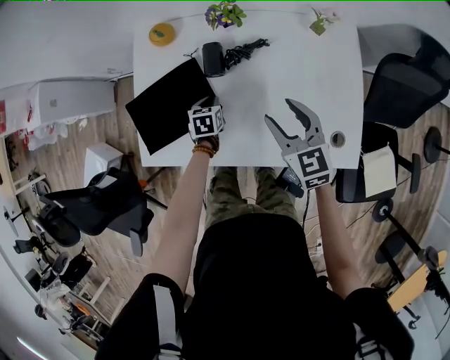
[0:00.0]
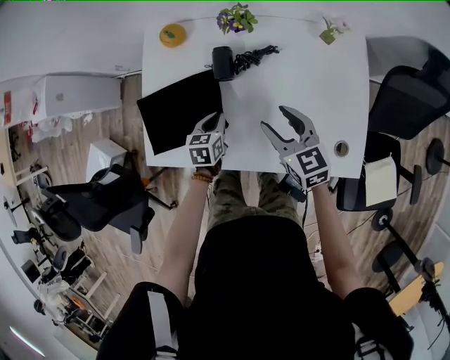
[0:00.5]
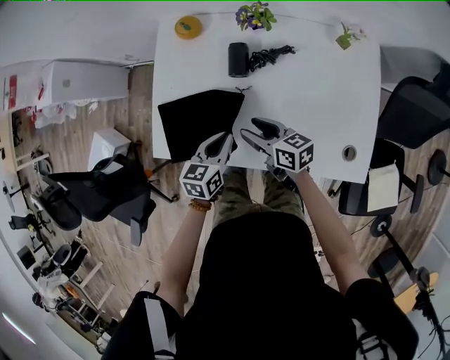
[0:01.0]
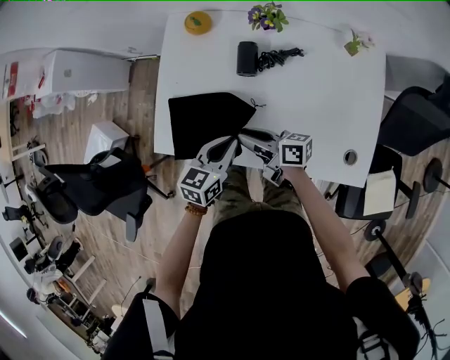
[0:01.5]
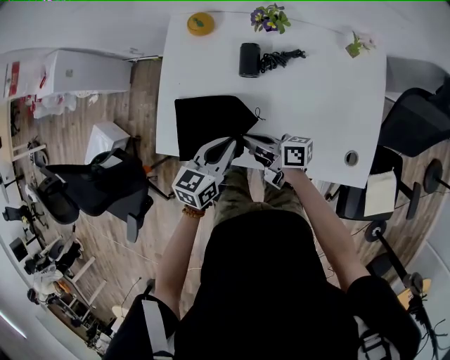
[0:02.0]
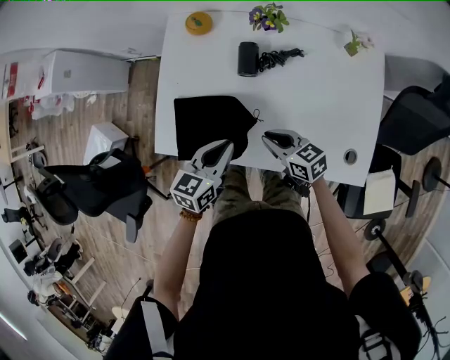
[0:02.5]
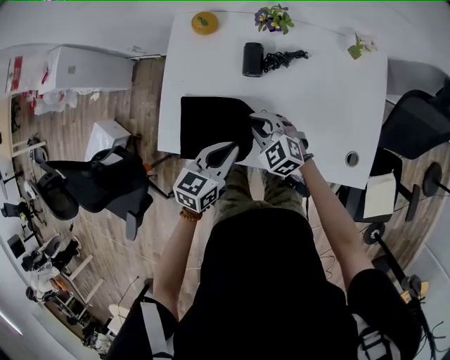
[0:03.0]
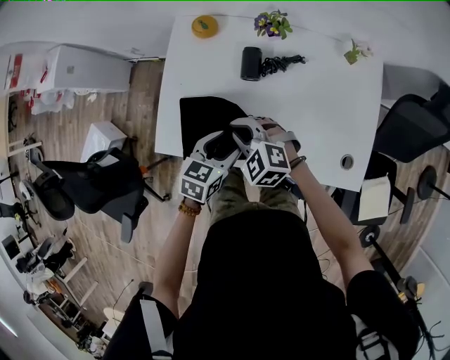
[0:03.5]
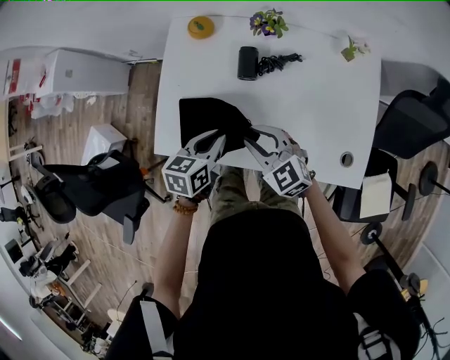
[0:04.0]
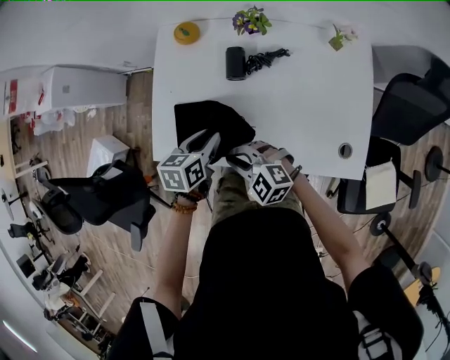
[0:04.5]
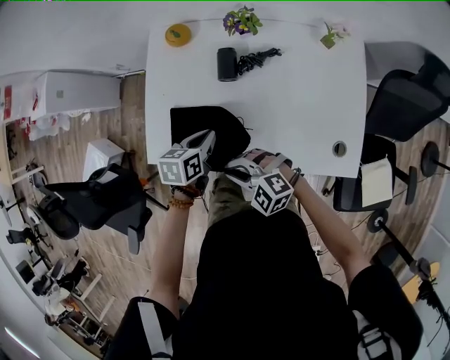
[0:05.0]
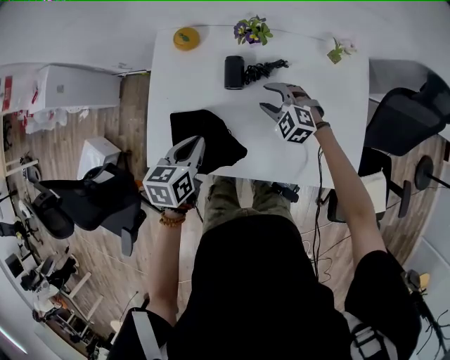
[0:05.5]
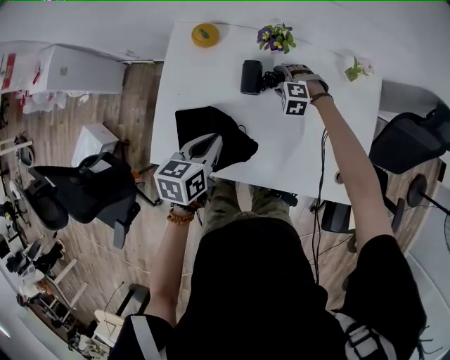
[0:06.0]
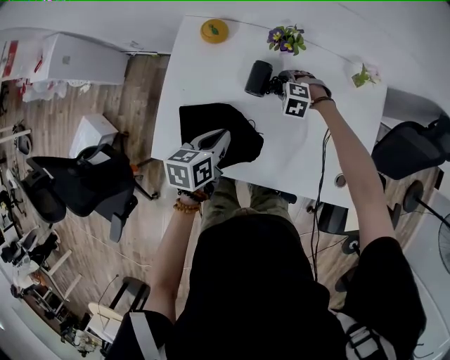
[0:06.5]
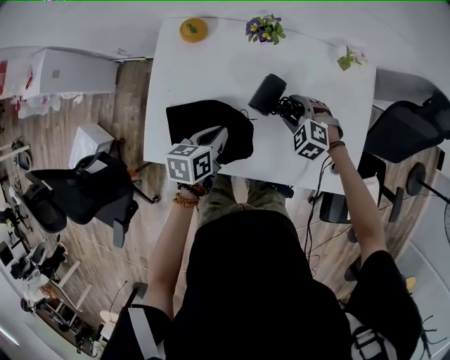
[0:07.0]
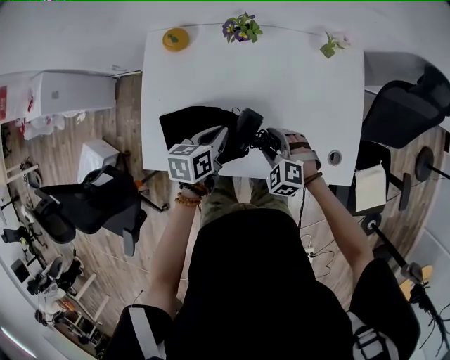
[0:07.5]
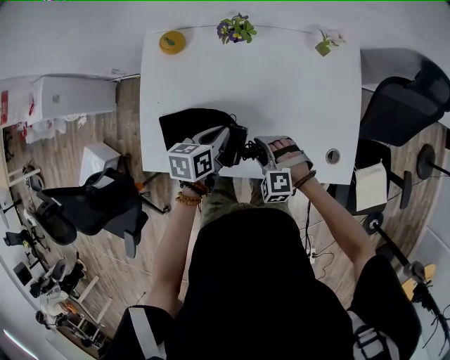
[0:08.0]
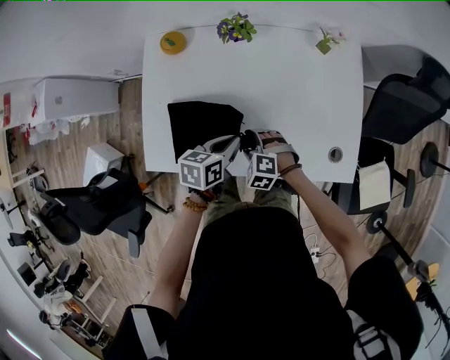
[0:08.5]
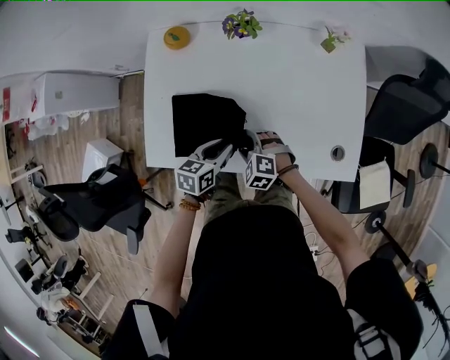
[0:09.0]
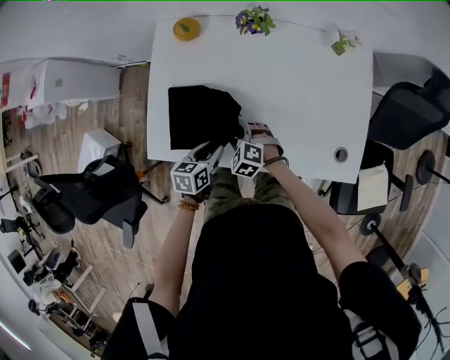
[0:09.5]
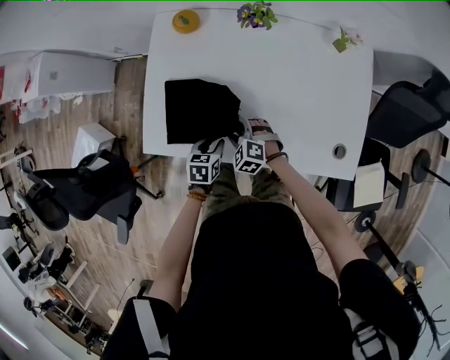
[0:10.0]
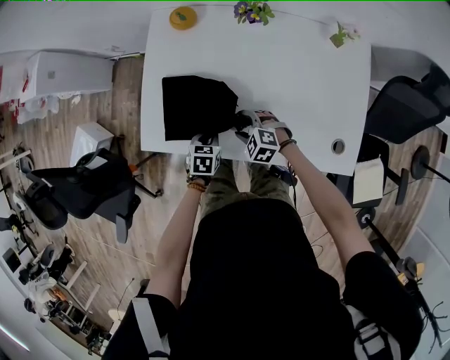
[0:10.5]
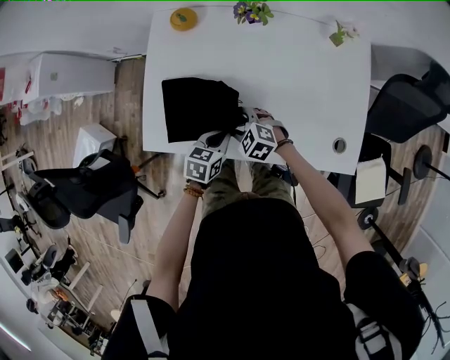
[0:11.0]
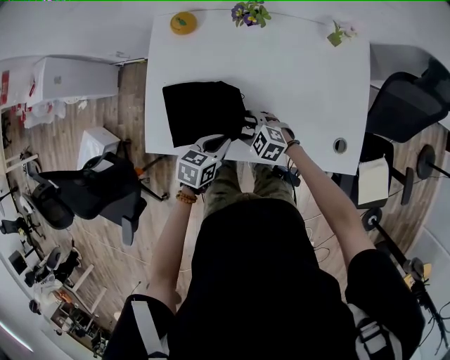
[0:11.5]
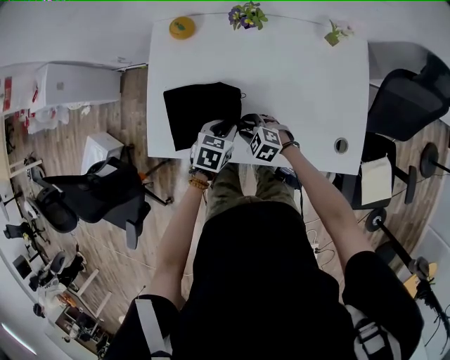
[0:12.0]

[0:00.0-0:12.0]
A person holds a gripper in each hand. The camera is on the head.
0:00.0 to 0:02.0: The right gripper travels to the left and downward by approximately 20 cm, swivels roughly 70 degrees, and closes up, while the left gripper shifts roughly 20 cm upward and backward, and rotates some 30 degrees.
0:02.0 to 0:04.0: The left gripper opens and closes again. The right gripper swings left and right, approximately 10 cm each way, with 2 reversals, and twists about 70 degrees counterclockwise, seen from behind.
0:04.0 to 0:06.0: The right gripper shifts roughly 30 cm forward, downward and to the right, tips its fingers downward by roughly 40 degrees, and opens up.
0:06.0 to 0:08.0: The left gripper is displaced to the right by about 10 cm; the right gripper moves backward, about 25 cm.
0:08.0 to 0:10.0: The left gripper goes some 20 cm downward, backward and to the left, and opens its fingers. The right gripper goes roughly 15 cm to the left and downward.
0:10.0 to 0:12.0: The left gripper goes some 10 cm to the right and upward, and closes, then opens again.

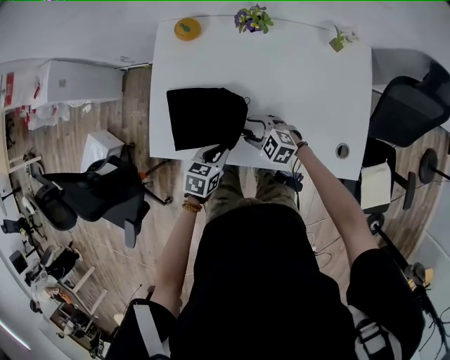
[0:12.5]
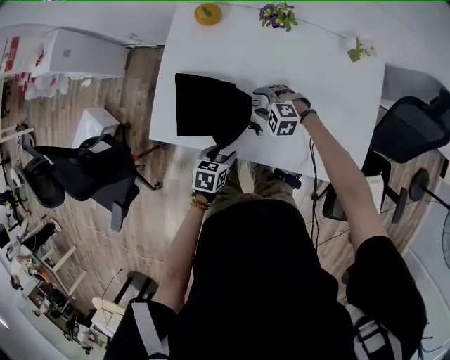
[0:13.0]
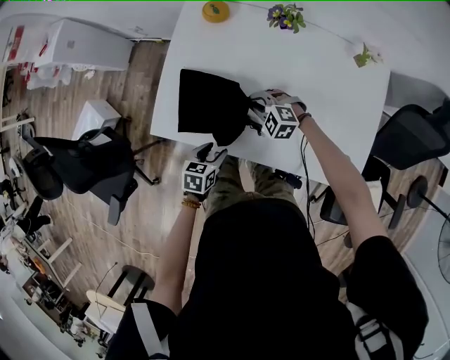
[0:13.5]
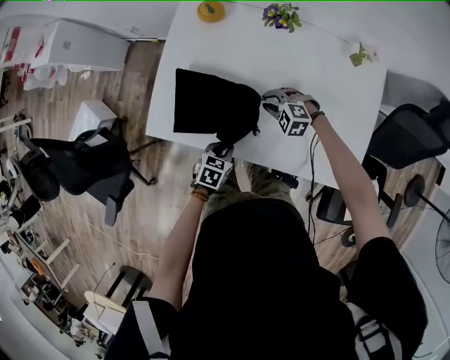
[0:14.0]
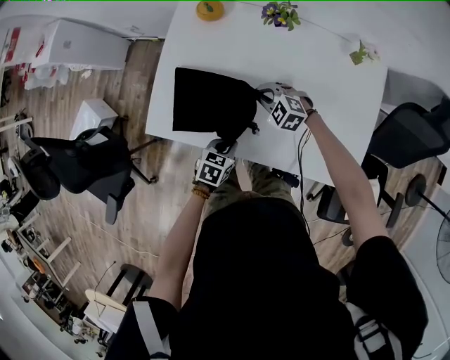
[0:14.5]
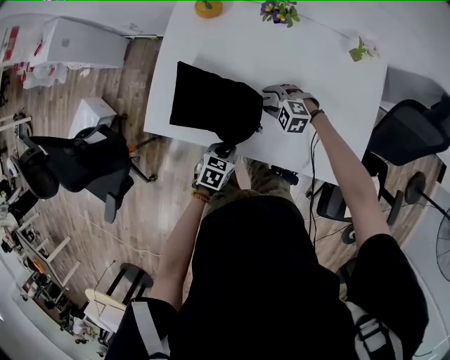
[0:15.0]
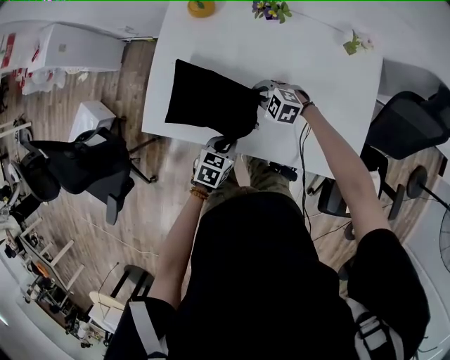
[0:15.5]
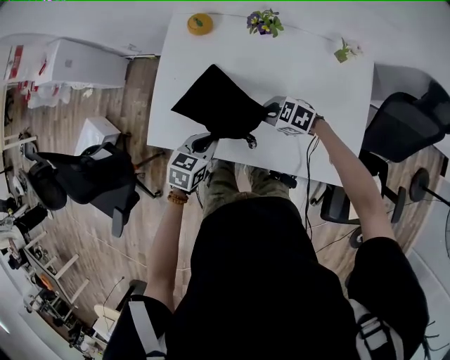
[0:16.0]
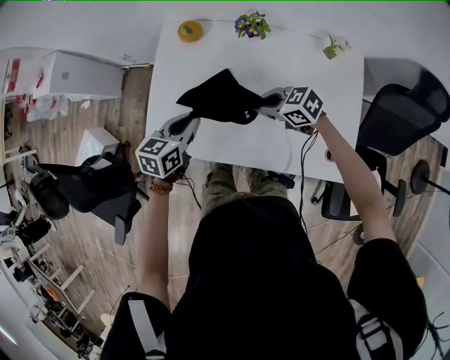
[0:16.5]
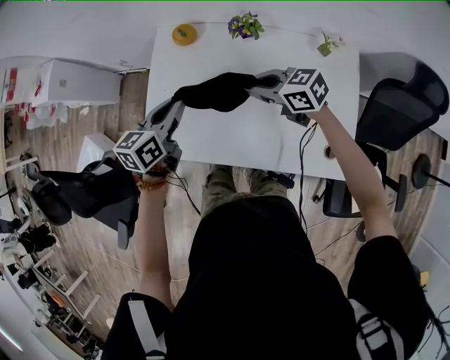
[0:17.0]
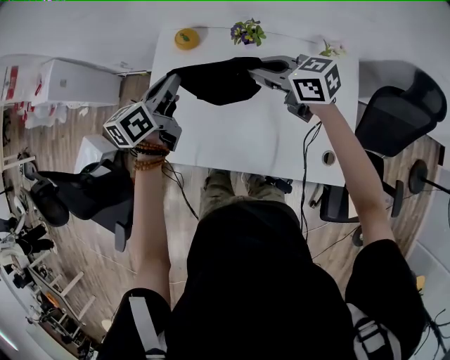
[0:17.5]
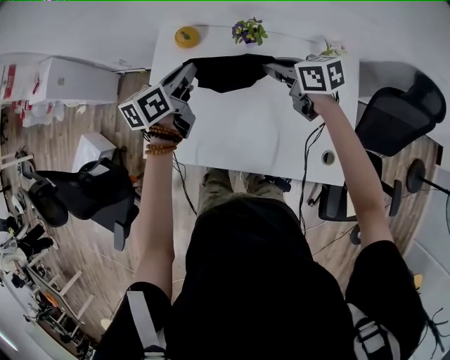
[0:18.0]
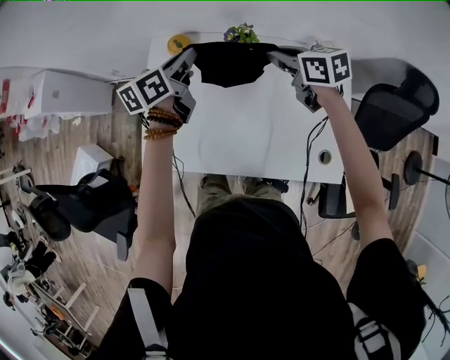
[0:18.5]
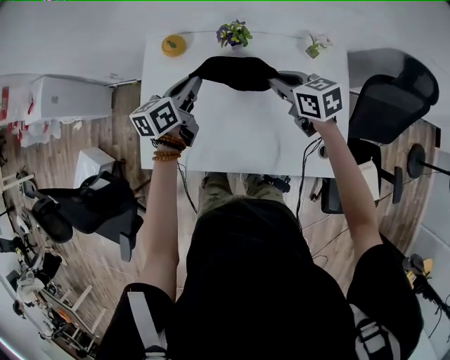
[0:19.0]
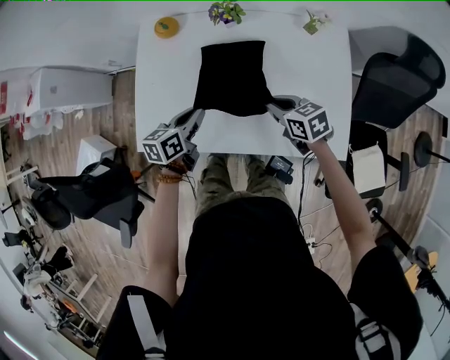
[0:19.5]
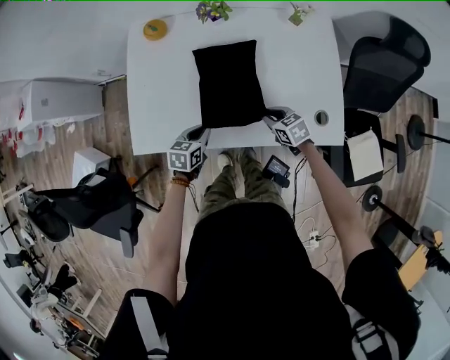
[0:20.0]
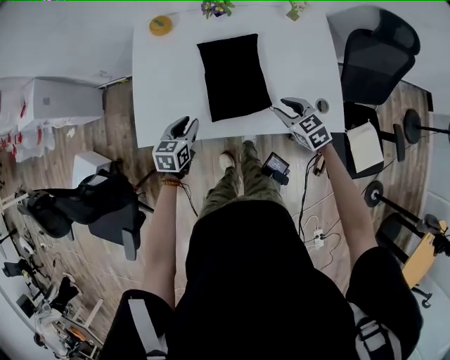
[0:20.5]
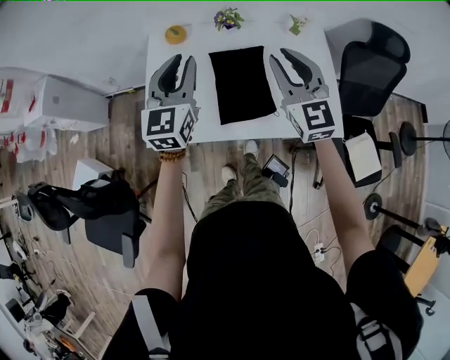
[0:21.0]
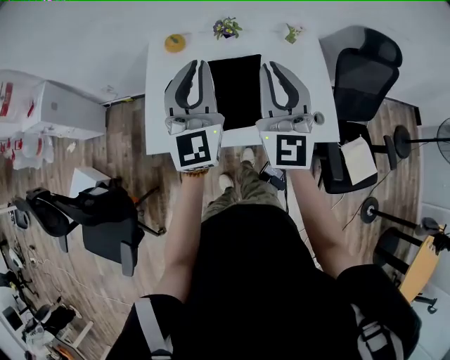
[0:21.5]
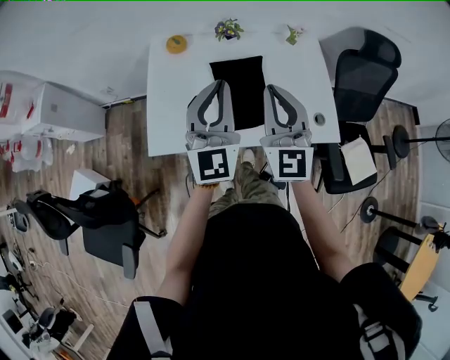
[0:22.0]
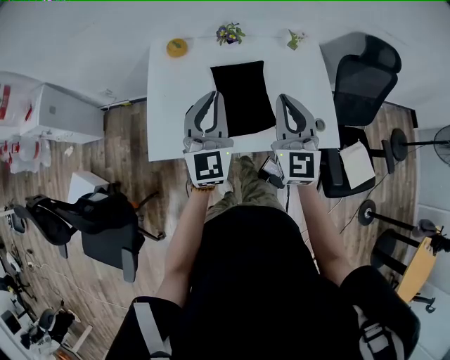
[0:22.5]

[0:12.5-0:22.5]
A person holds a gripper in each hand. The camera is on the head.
0:12.5 to 0:14.5: The right gripper shifts about 10 cm forward, and closes up, while the left gripper shifts by approximately 5 cm, and opens and closes again.
0:14.5 to 0:16.5: The right gripper travels upward by approximately 10 cm, changes its angle by approximately 40 degrees, and opens, then closes again; the left gripper heads upward, covering some 20 cm, and rotates approximately 20 degrees.
0:16.5 to 0:18.5: The two grippers go roughly 25 cm forward, upward and to the right. The right gripper swivels about 40 degrees. The left gripper rotates about 30 degrees.
0:18.5 to 0:20.5: The grippers both shift backward and downward by approximately 35 cm. The right gripper turns by approximately 20 degrees. Meanwhile the left gripper rotates roughly 30 degrees.
0:20.5 to 0:22.5: Both grippers travel together upward, roughly 30 cm. The left gripper points its fingers roughly 40 degrees further upward; the right gripper tilts its fingers about 40 degrees upward, and closes its fingers.

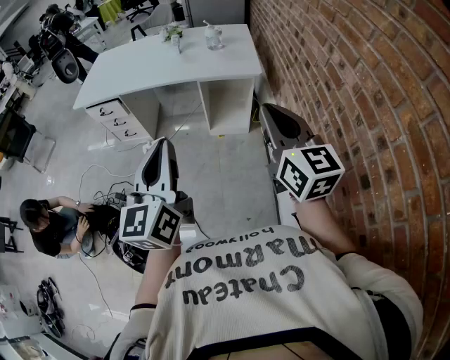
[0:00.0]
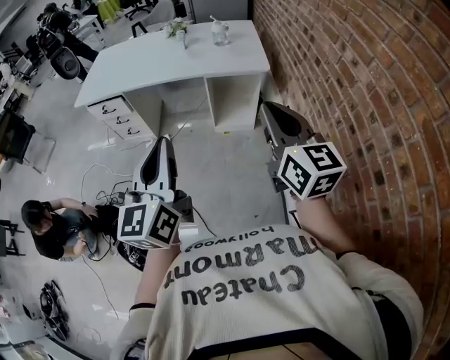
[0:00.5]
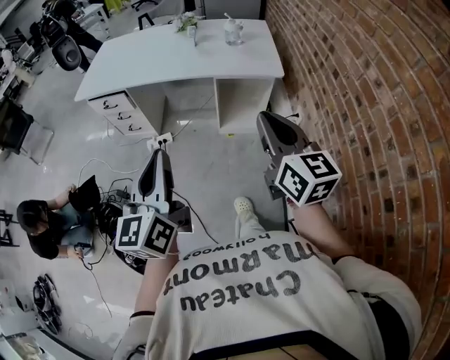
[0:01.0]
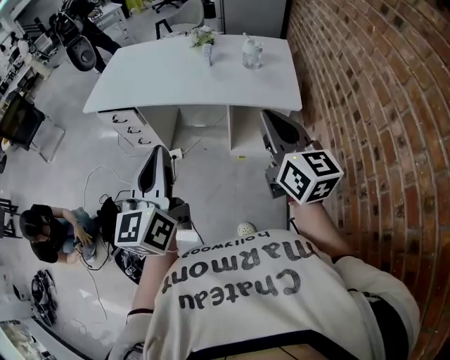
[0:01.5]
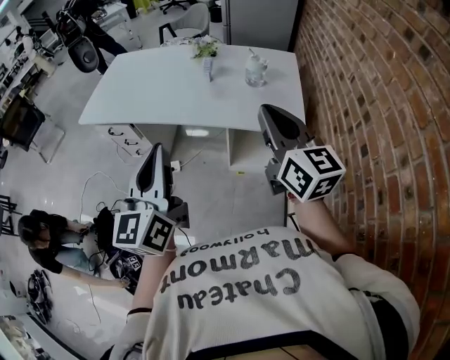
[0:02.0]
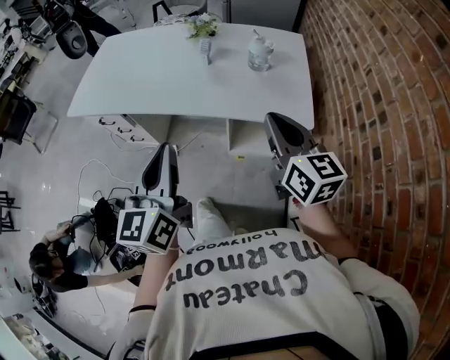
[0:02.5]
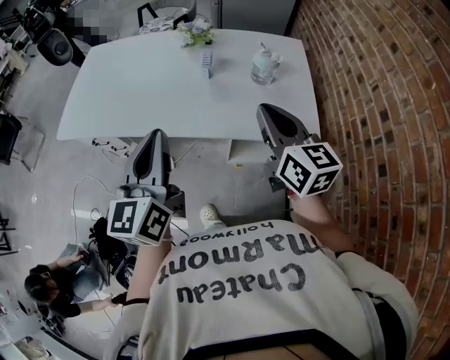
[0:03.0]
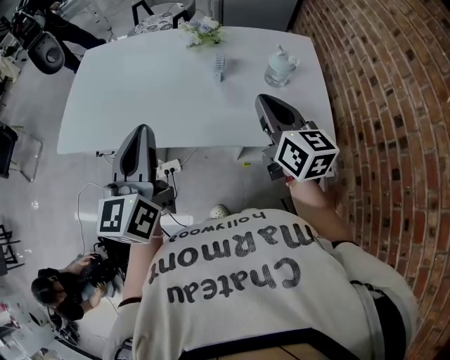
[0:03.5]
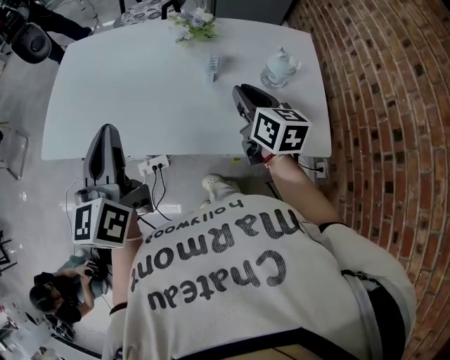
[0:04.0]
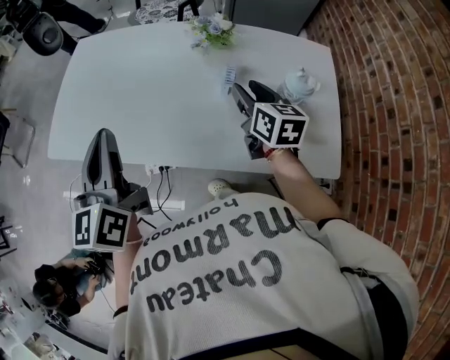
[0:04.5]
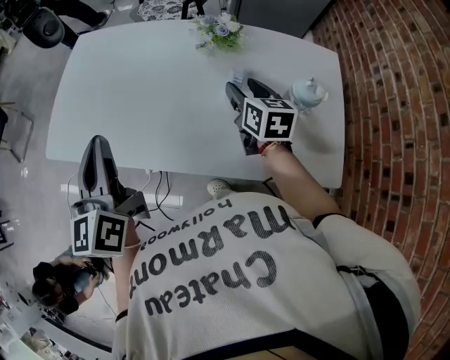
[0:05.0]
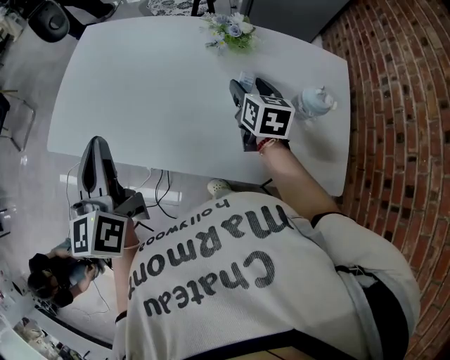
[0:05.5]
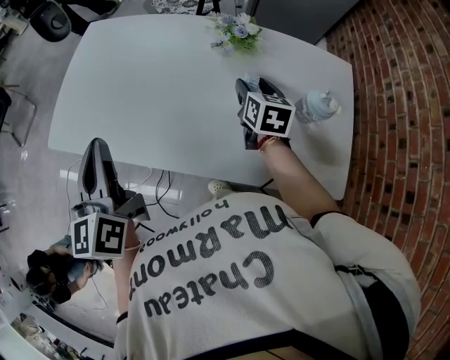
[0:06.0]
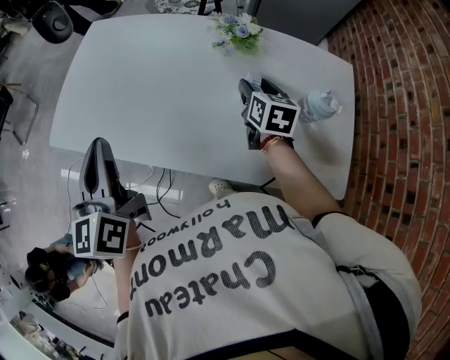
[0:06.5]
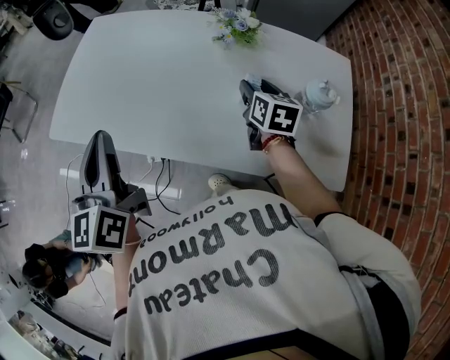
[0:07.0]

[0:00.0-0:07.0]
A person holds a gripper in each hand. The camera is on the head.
0:00.0 to 0:02.0: Both grippers move forward, about 35 cm.
0:02.0 to 0:03.5: The right gripper heads forward and downward, covering about 25 cm; the left gripper travels forward and to the left by some 30 cm.
0:03.5 to 0:05.0: The left gripper heads forward and to the left, covering roughly 15 cm; the right gripper shifts about 25 cm forward and downward, and opens its fingers.
0:05.0 to 0:07.0: There are only small adjustments of the grippers.
